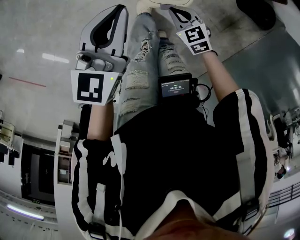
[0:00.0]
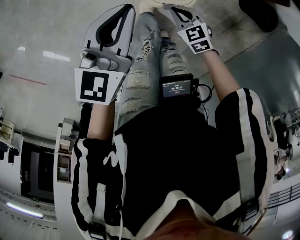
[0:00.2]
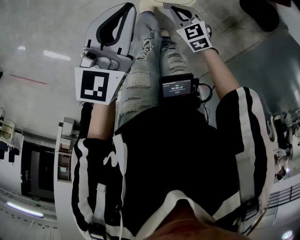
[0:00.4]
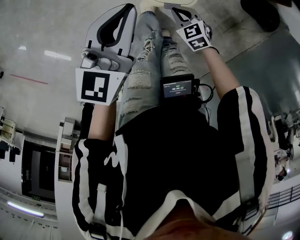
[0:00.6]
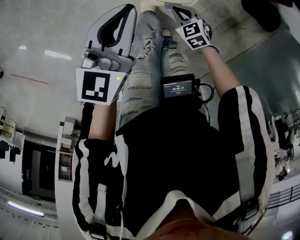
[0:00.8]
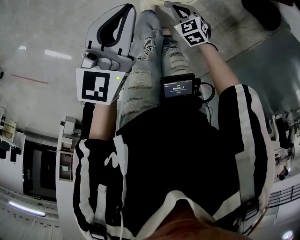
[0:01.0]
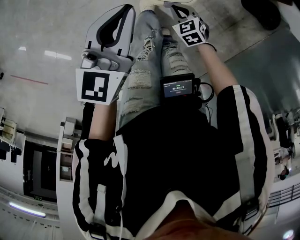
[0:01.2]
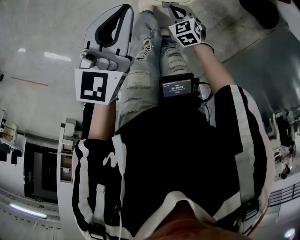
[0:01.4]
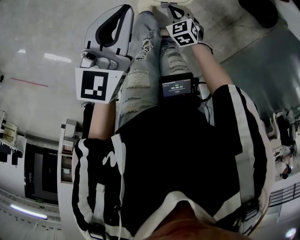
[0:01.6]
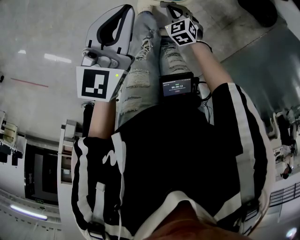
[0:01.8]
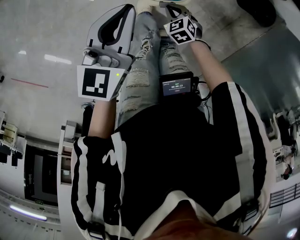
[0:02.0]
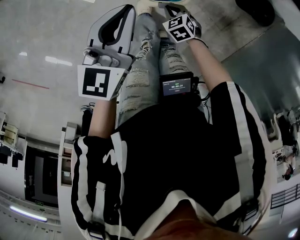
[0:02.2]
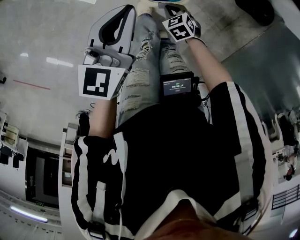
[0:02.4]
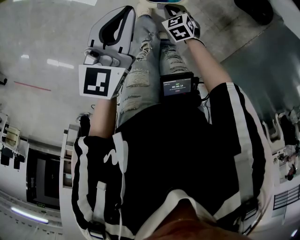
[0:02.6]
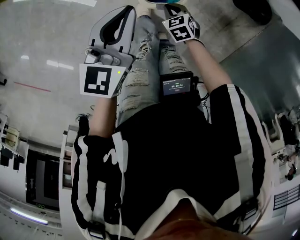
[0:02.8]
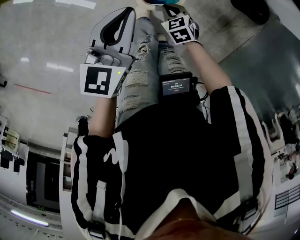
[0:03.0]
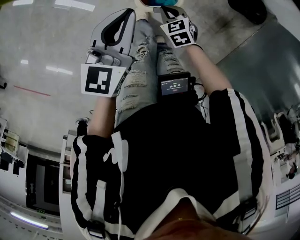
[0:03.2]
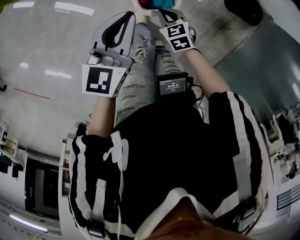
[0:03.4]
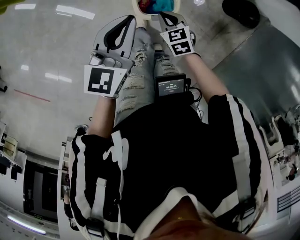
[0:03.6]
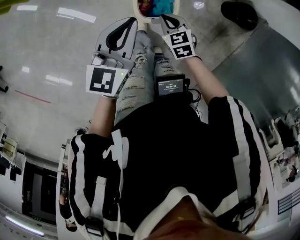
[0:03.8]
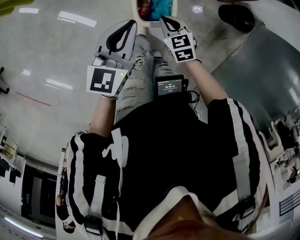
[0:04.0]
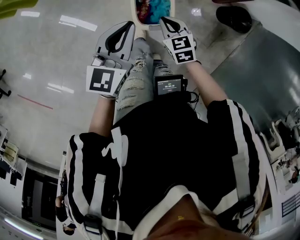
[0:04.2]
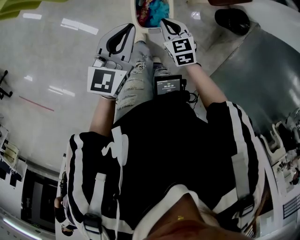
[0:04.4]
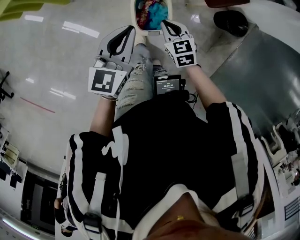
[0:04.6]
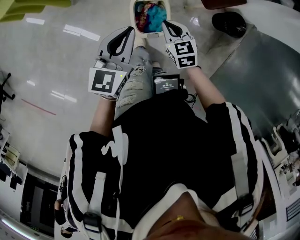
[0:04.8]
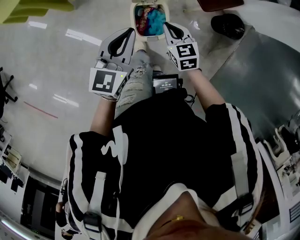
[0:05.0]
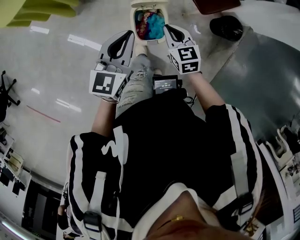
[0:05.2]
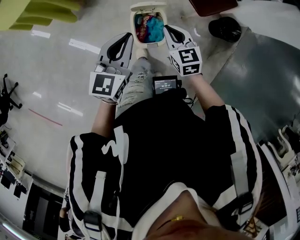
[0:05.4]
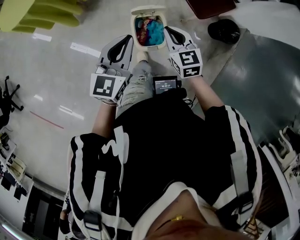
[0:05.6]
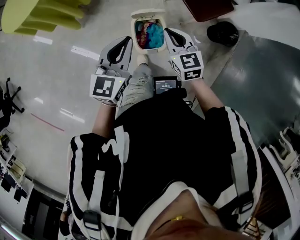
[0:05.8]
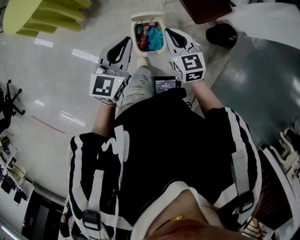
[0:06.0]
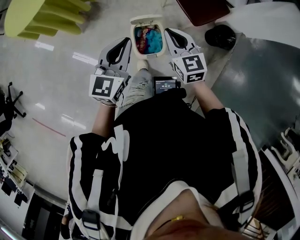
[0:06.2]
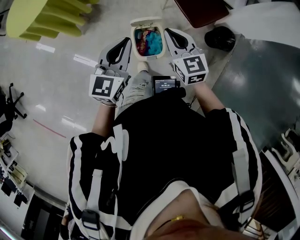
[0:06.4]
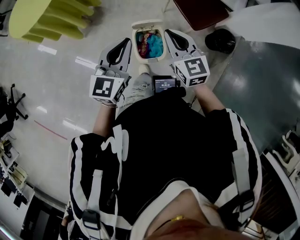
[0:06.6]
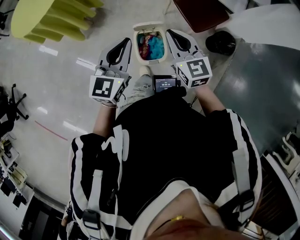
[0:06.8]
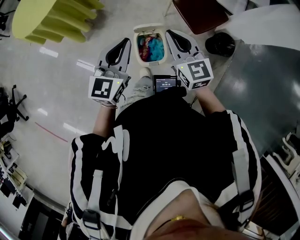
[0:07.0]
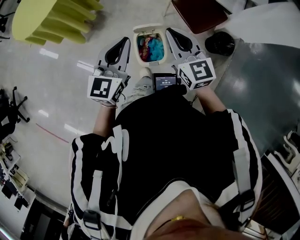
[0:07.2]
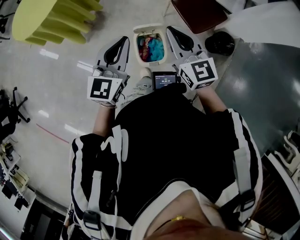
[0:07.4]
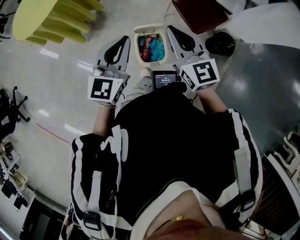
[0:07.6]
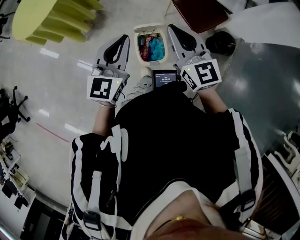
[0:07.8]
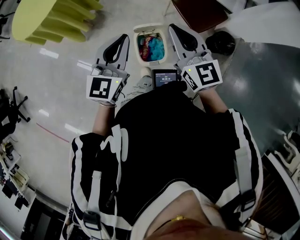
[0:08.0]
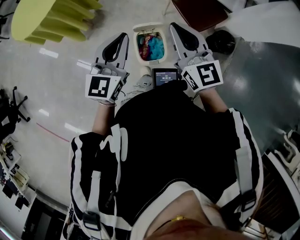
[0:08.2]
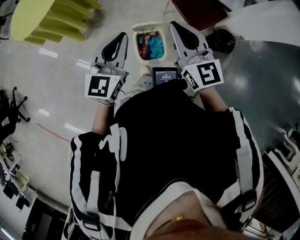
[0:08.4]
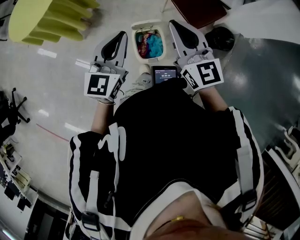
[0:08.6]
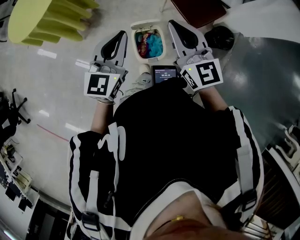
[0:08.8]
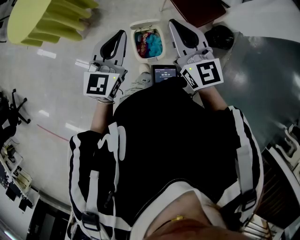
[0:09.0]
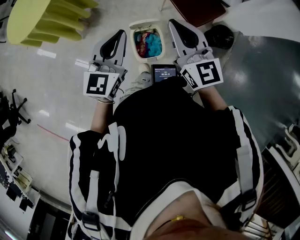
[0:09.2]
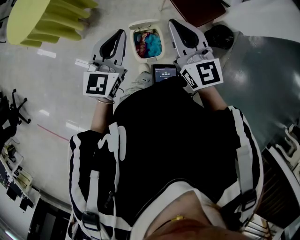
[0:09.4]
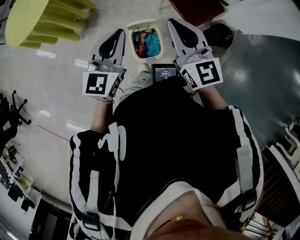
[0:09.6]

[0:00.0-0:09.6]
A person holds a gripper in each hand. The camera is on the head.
0:00.0 to 0:01.6: The right gripper moves downward, approximately 5 cm.
0:01.6 to 0:03.2: The right gripper goes roughly 5 cm upward.
0:03.2 to 0:04.8: The left gripper moves upward, roughly 10 cm. Meanwhile the right gripper is displaced upward by about 20 cm.
0:04.8 to 0:06.4: The left gripper travels upward by roughly 10 cm. Meanwhile the right gripper moves upward, roughly 20 cm, and rotates roughly 20 degrees.
0:06.4 to 0:08.0: The left gripper heads upward, covering roughly 5 cm, while the right gripper is displaced upward by some 10 cm.
0:08.0 to 0:09.6: The grippers stay close to where they were, moving slightly.

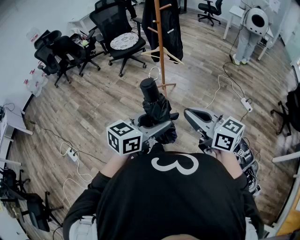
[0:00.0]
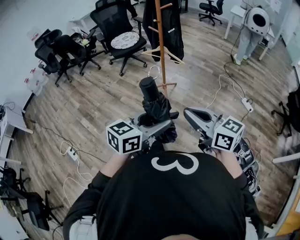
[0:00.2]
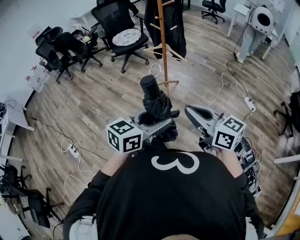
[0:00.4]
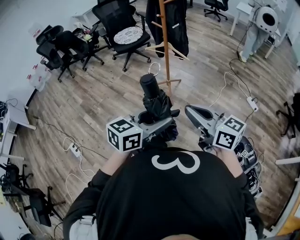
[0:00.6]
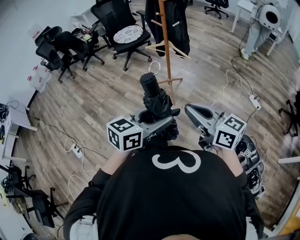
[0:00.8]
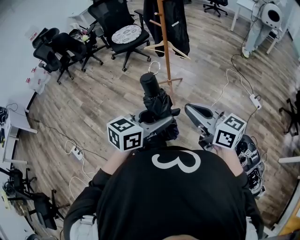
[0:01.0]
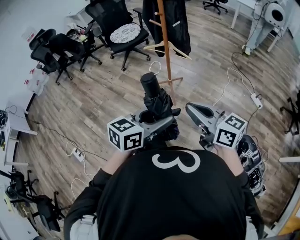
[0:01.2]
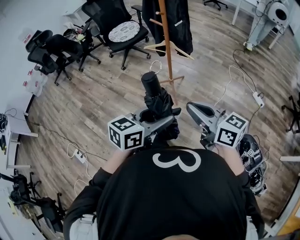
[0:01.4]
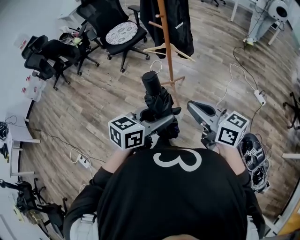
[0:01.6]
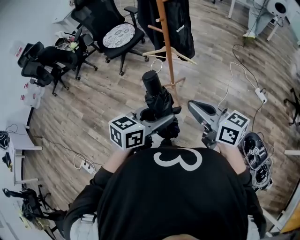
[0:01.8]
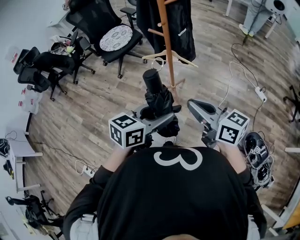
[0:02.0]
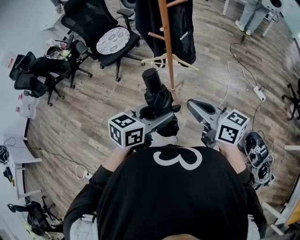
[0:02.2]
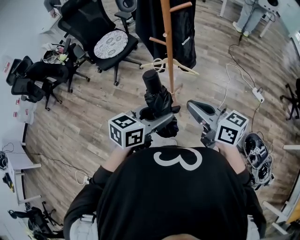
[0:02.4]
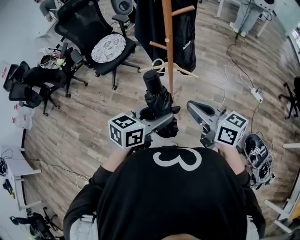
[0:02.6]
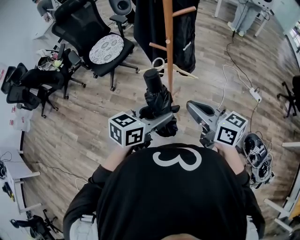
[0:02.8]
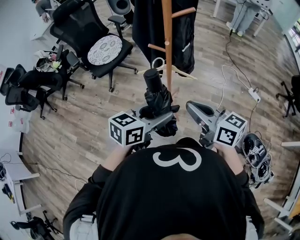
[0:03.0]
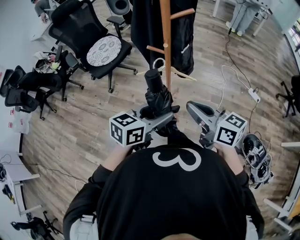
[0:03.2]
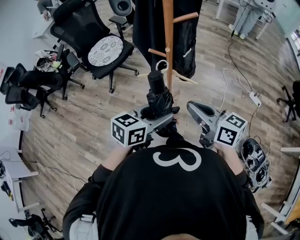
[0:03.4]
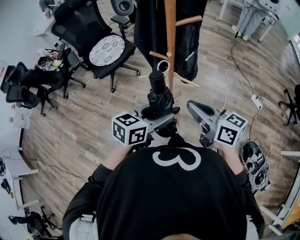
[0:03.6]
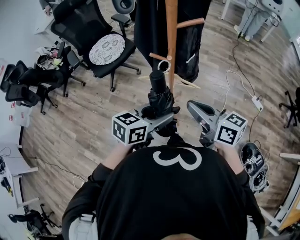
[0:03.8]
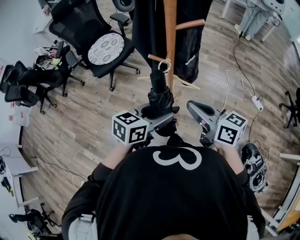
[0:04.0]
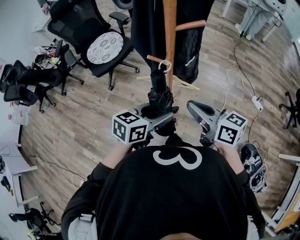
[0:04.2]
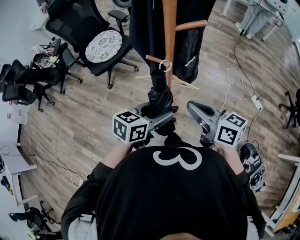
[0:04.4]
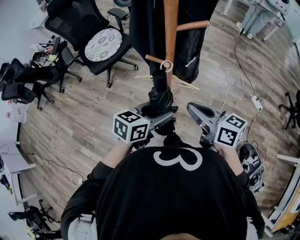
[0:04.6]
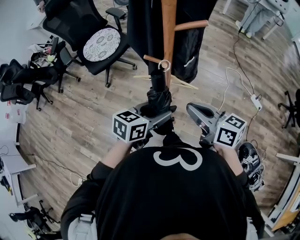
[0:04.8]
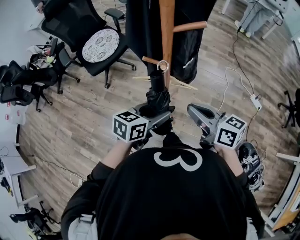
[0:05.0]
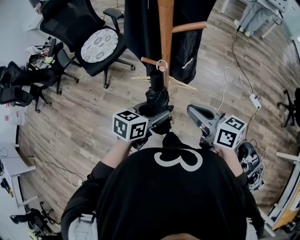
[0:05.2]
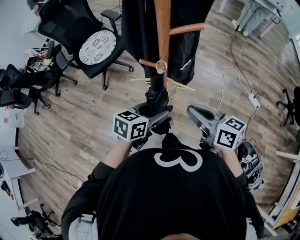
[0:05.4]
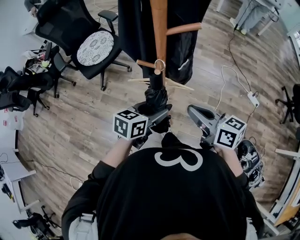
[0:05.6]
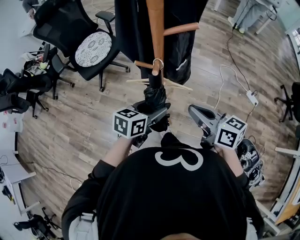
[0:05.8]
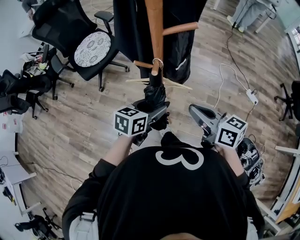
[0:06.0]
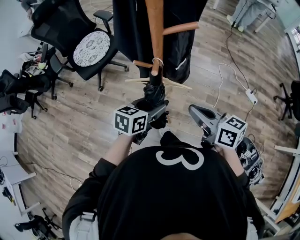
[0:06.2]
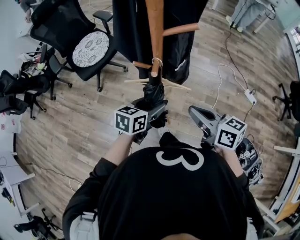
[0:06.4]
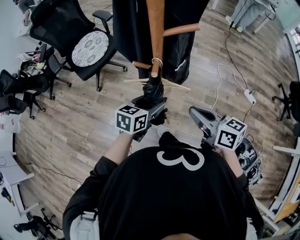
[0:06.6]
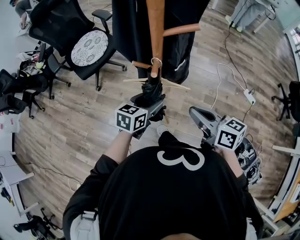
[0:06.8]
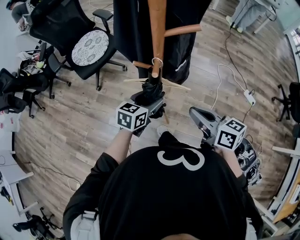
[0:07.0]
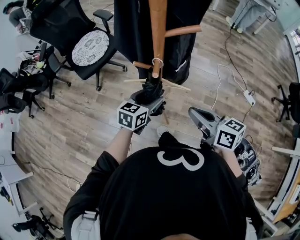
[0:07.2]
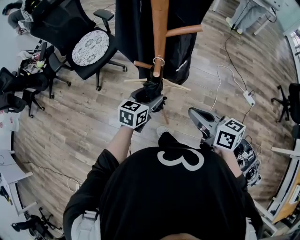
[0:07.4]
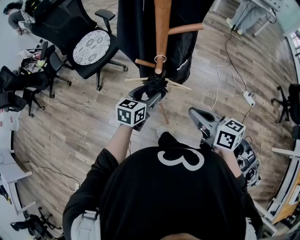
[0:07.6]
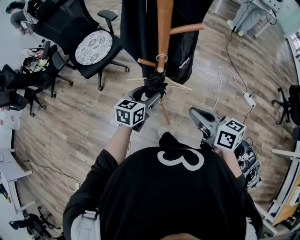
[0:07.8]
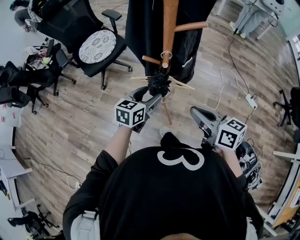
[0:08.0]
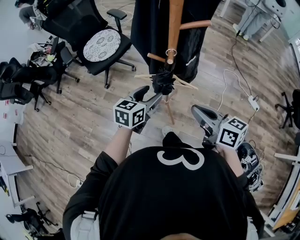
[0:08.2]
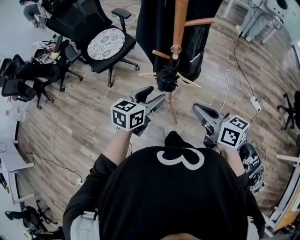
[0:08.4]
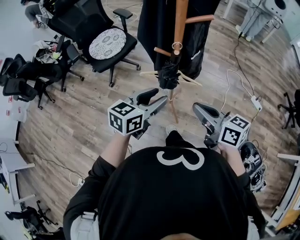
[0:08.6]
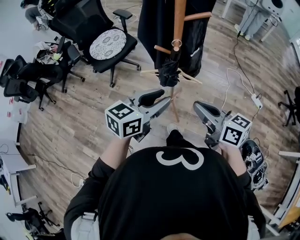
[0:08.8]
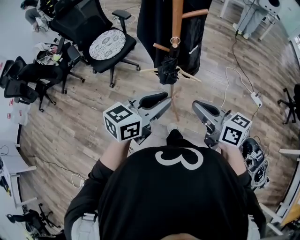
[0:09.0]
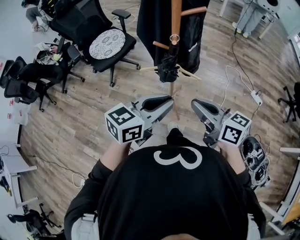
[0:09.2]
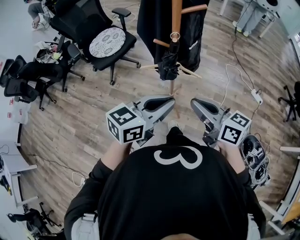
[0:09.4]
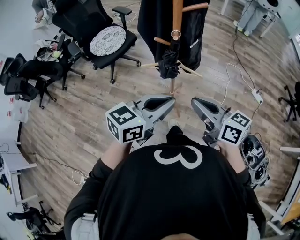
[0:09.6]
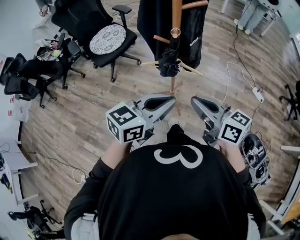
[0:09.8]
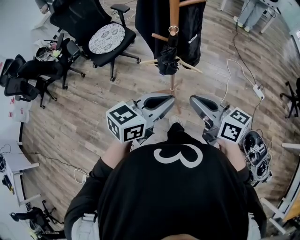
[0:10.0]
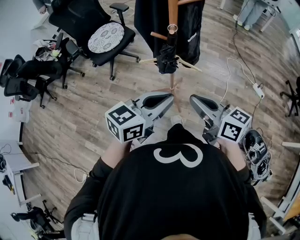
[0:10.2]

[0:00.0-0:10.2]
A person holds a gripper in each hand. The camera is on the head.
0:00.0 to 0:01.4: The grippers both shift forward by approximately 15 cm.
0:01.4 to 0:03.0: The two grippers go some 30 cm forward and to the left.
0:03.0 to 0:04.4: The grippers both shift forward by approximately 10 cm.
0:04.4 to 0:05.8: The left gripper moves forward and downward, roughly 5 cm.
0:05.8 to 0:07.2: The left gripper goes approximately 5 cm forward.
0:07.2 to 0:08.8: The left gripper shifts roughly 20 cm upward and backward, and closes up; the right gripper travels backward and to the left by approximately 10 cm.
0:08.8 to 0:10.2: The left gripper goes some 5 cm backward, and closes up.

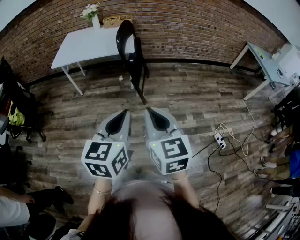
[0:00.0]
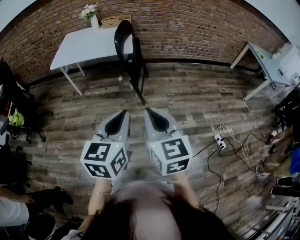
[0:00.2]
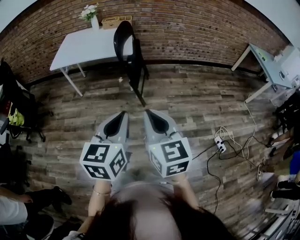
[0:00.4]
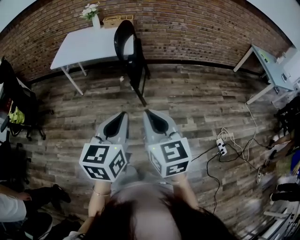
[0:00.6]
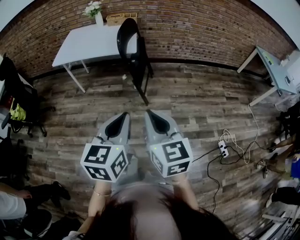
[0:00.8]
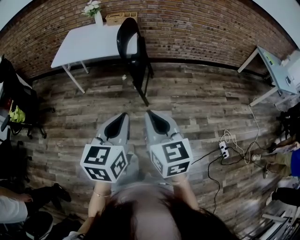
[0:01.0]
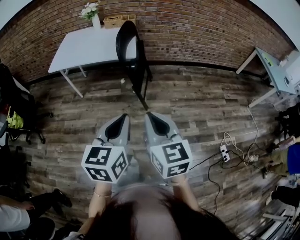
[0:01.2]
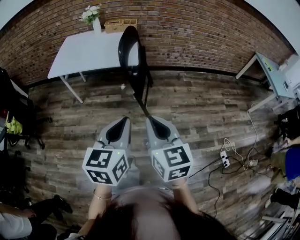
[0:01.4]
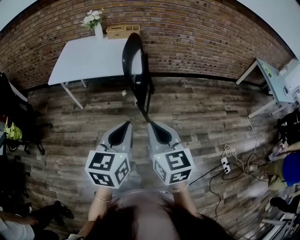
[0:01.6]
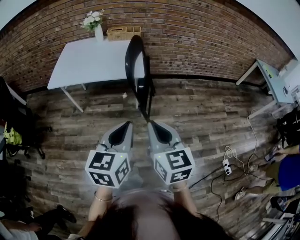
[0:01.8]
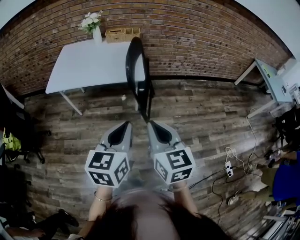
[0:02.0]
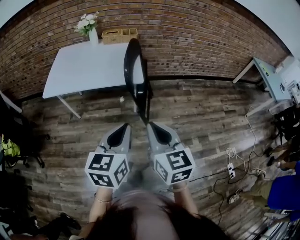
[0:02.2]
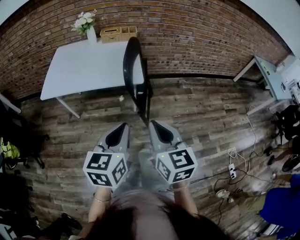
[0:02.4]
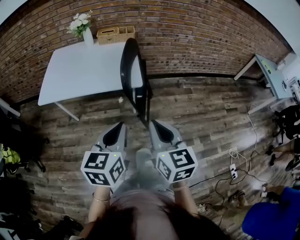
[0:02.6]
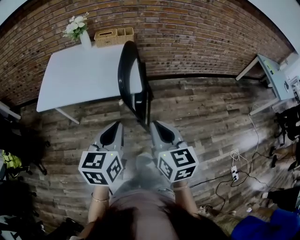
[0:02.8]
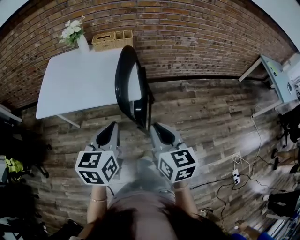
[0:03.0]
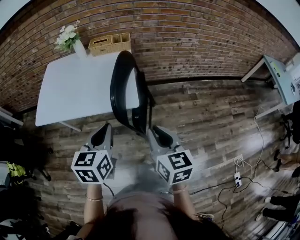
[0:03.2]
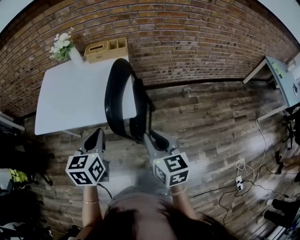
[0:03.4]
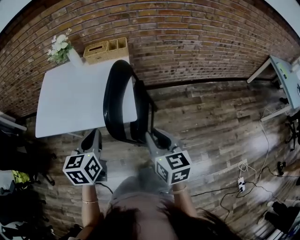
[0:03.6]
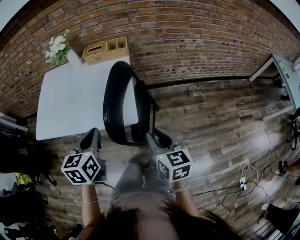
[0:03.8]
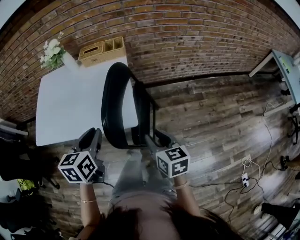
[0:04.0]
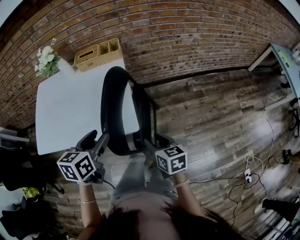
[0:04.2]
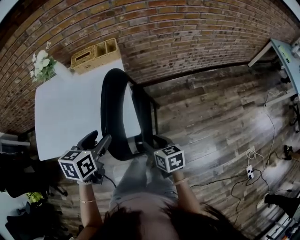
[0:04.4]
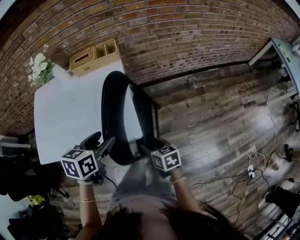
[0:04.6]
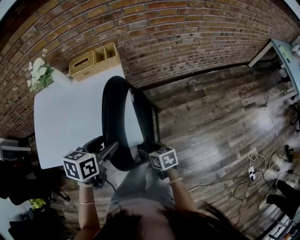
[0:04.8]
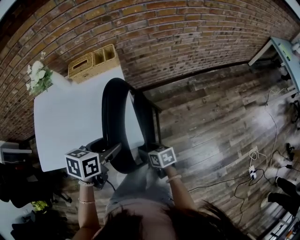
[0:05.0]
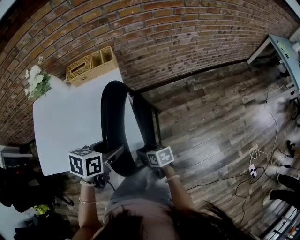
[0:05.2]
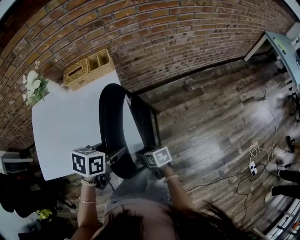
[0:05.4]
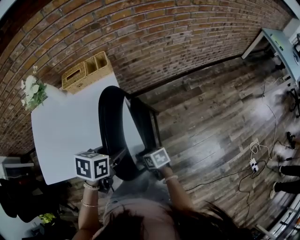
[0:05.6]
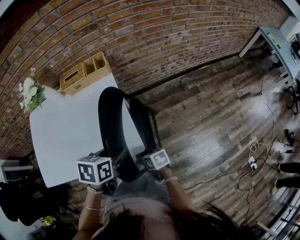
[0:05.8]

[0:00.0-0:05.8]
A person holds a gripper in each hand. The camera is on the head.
0:00.0 to 0:01.4: The grippers both shift forward by approximately 15 cm.
0:01.4 to 0:02.8: The grippers both shift forward by about 25 cm.
0:02.8 to 0:04.4: The left gripper goes about 30 cm forward, changes its angle by roughly 20 degrees, and opens up; the right gripper travels forward and downward by roughly 30 cm, changes its angle by some 30 degrees, and opens its fingers.
0:04.4 to 0:05.8: The left gripper goes some 5 cm downward, and swivels some 20 degrees; the right gripper travels downward and to the left by roughly 15 cm.
